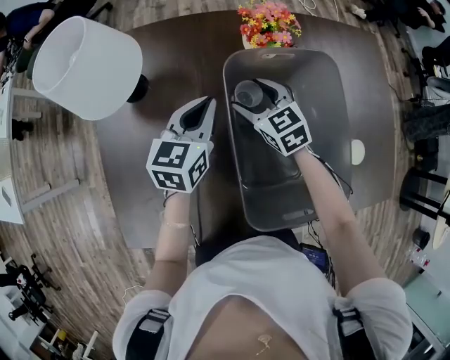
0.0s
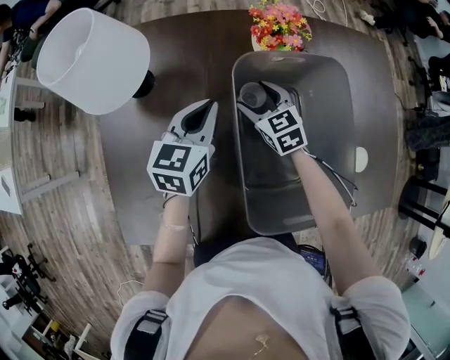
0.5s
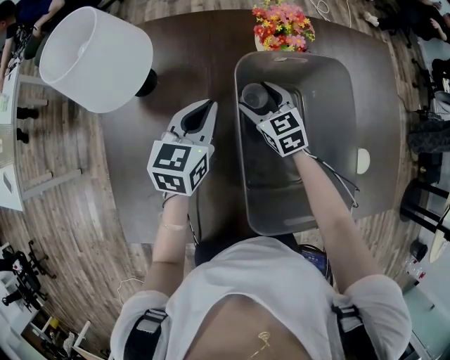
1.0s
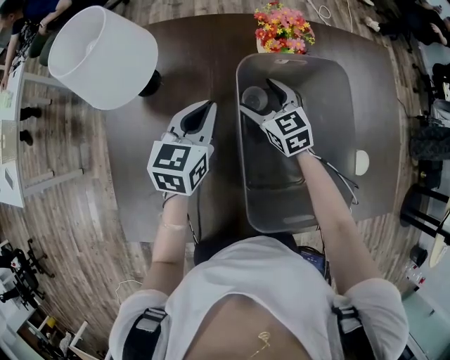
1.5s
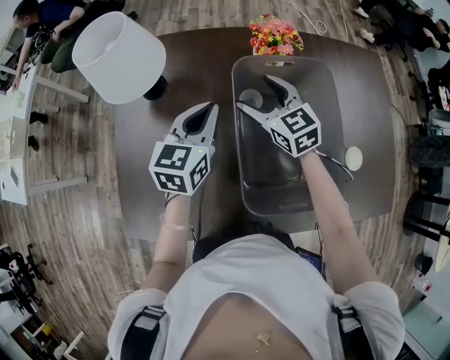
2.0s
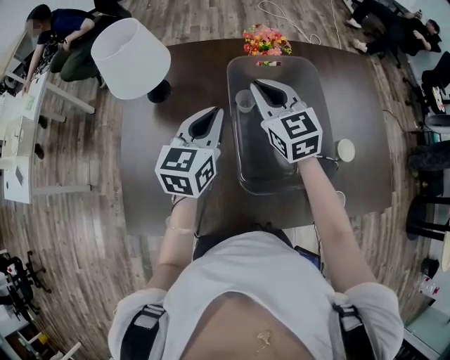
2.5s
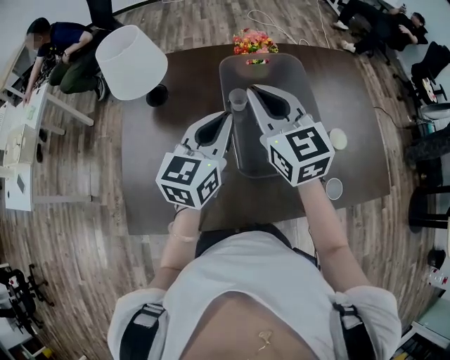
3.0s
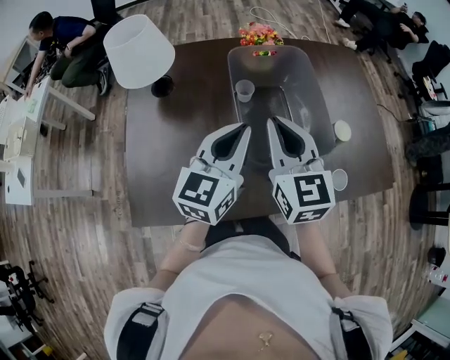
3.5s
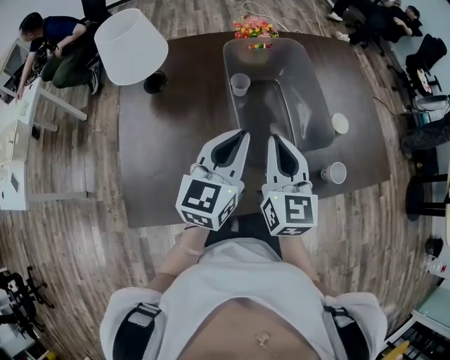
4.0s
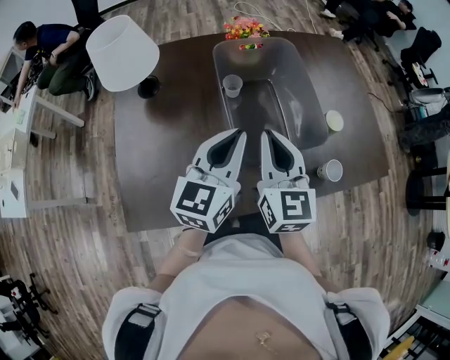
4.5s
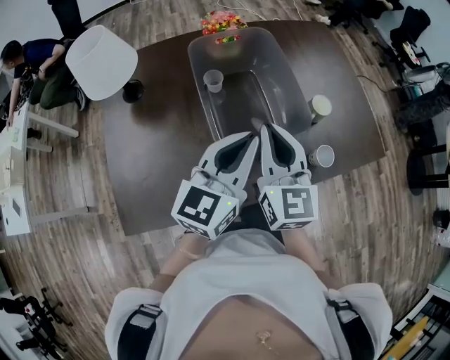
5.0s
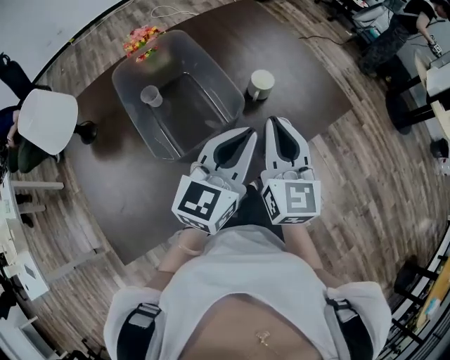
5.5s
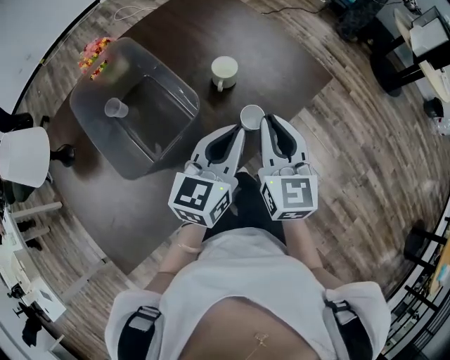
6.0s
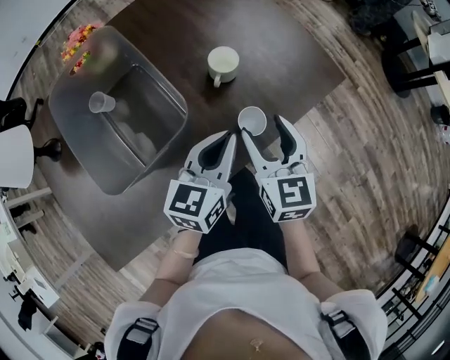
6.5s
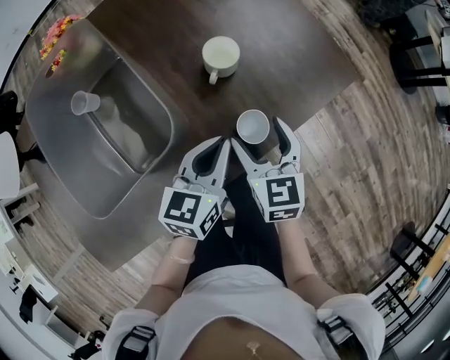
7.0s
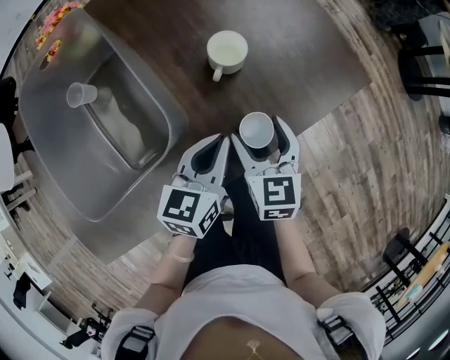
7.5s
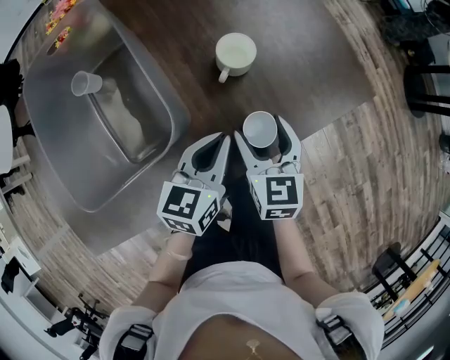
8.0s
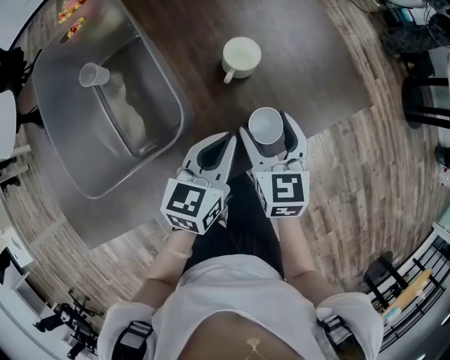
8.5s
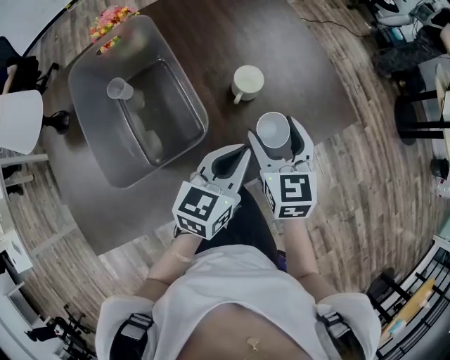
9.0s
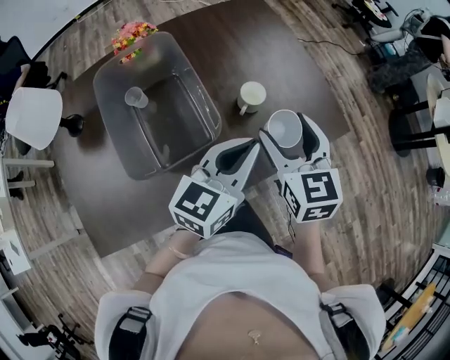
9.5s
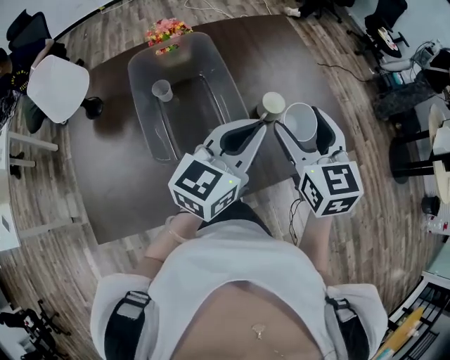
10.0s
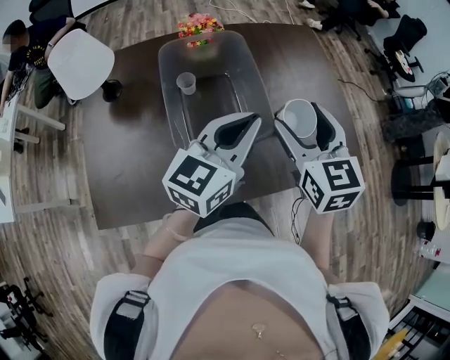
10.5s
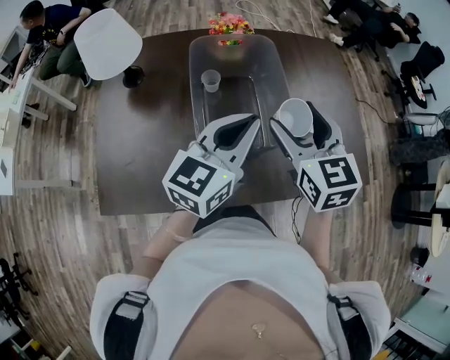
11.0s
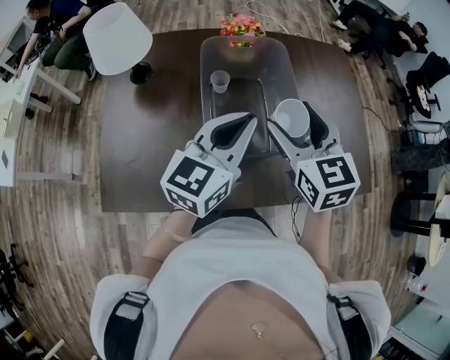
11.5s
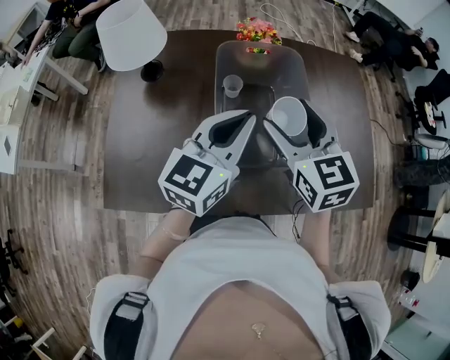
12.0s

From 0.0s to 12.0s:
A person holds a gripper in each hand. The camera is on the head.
From 0.0s to 2.0s: The right gripper moves upward, about 10 cm, while the left gripper moves about 5 cm.
From 2.0s to 4.0s: Both grippers move backward, roughly 20 cm. The right gripper turns by some 40 degrees, and closes its fingers.
From 4.0s to 6.0s: The right gripper moves roughly 30 cm, and changes its angle by about 30 degrees; the left gripper shifts by roughly 30 cm, and turns by some 30 degrees.
From 6.0s to 8.0s: The two grippers go roughly 15 cm downward. The right gripper changes its angle by approximately 20 degrees, and opens. The left gripper swivels roughly 20 degrees.
From 8.0s to 10.0s: The grippers both shift upward by approximately 25 cm. The right gripper rotates roughly 20 degrees, while the left gripper changes its angle by about 30 degrees.
From 10.0s to 12.0s: The right gripper changes place by some 20 cm, and swivels about 30 degrees; the left gripper shifts by some 20 cm, and swivels approximately 20 degrees.

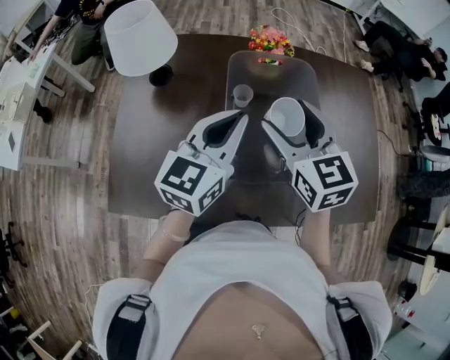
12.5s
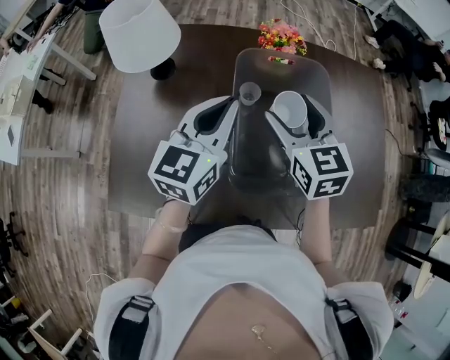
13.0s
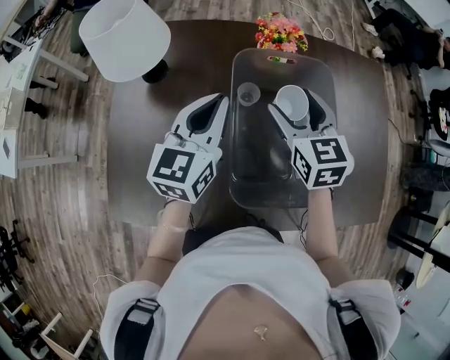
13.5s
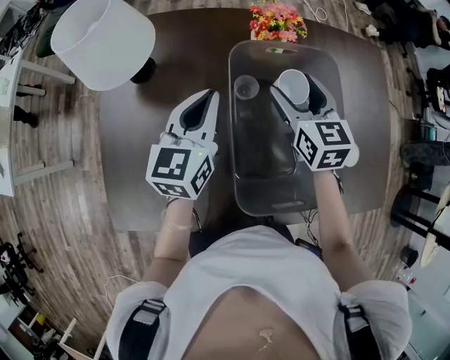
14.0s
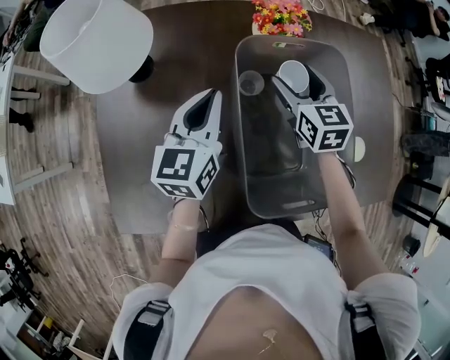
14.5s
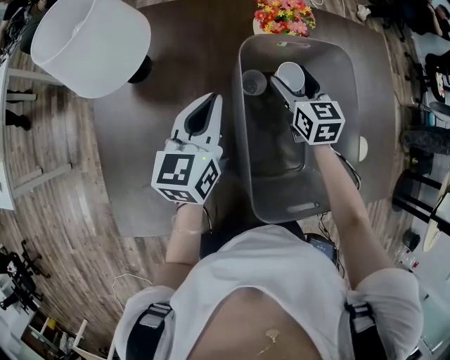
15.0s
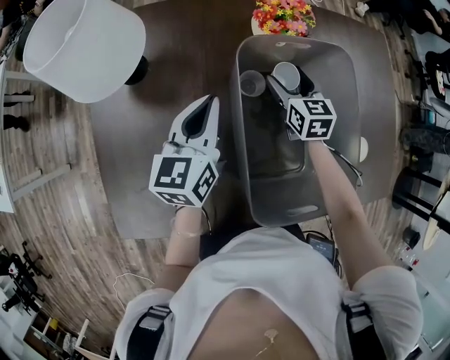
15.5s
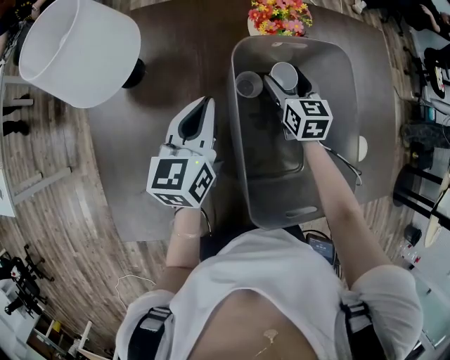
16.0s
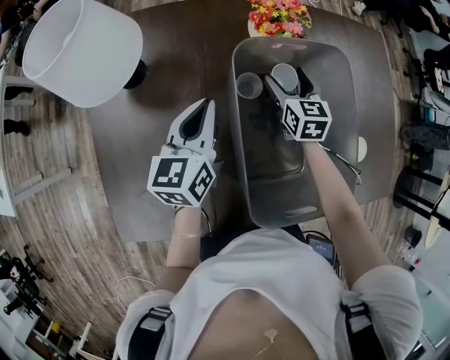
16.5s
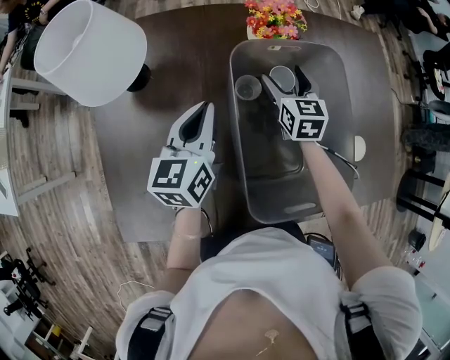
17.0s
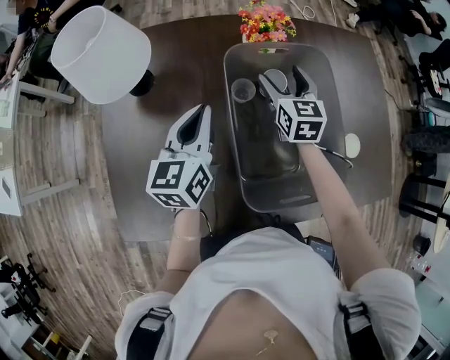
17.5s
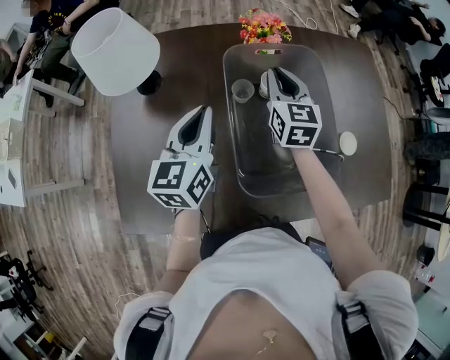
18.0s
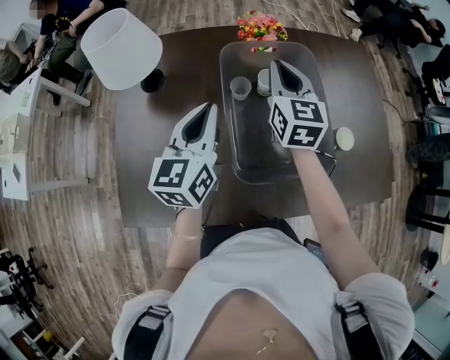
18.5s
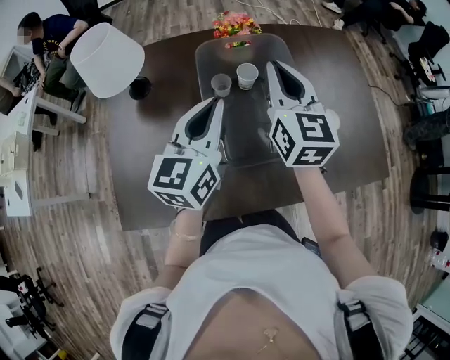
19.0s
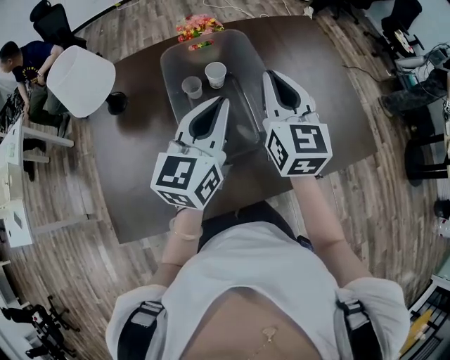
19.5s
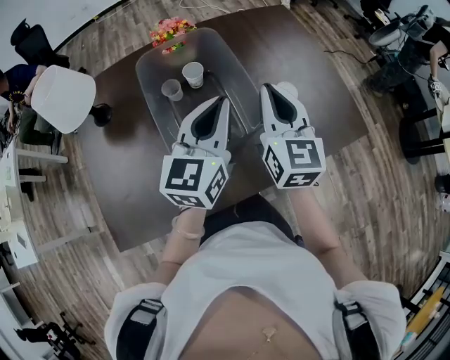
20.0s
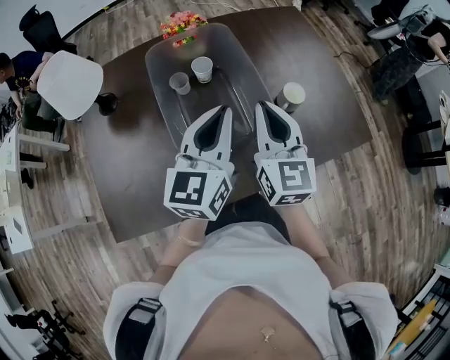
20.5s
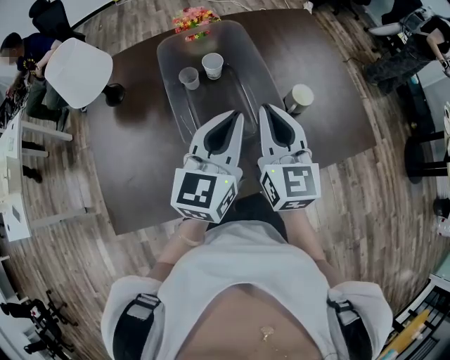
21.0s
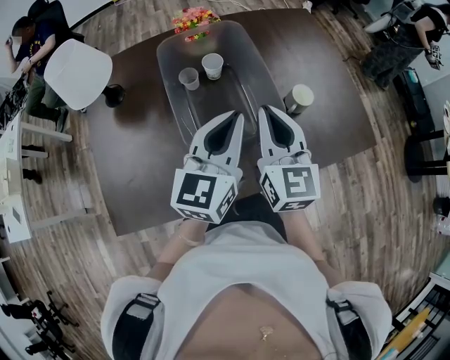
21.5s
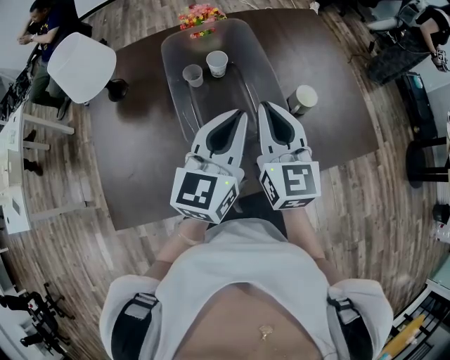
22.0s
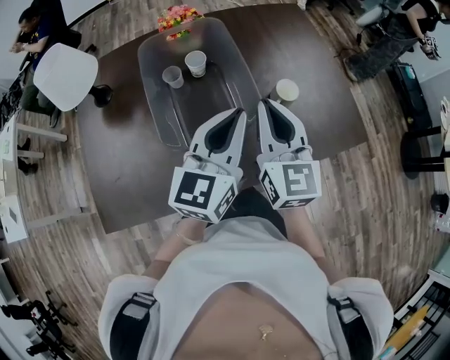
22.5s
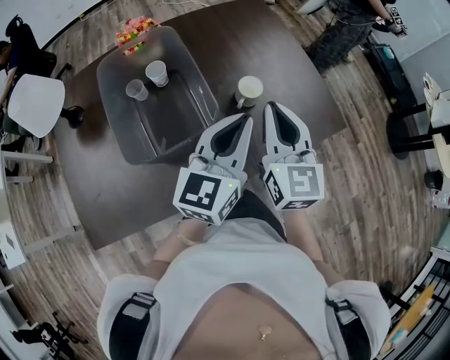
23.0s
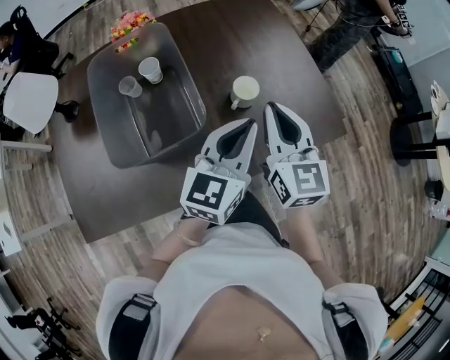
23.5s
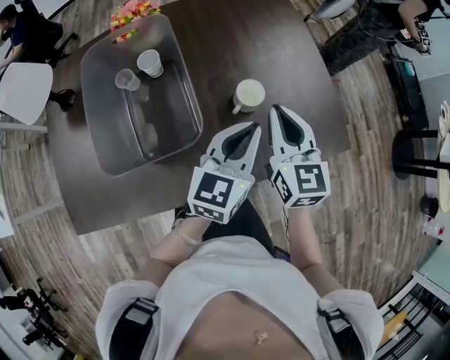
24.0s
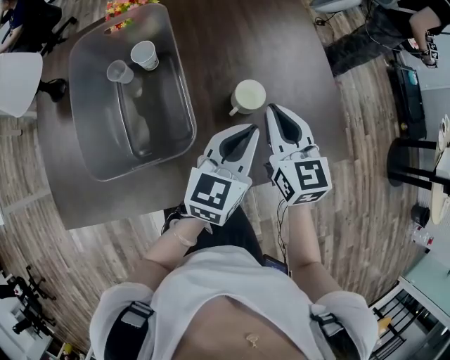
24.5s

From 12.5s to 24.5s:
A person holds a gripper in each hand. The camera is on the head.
From 12.5s to 14.5s: The right gripper shifts roughly 20 cm forward and downward. The left gripper shifts some 20 cm downward, forward and to the left.
From 14.5s to 16.5s: The right gripper is displaced downward by about 10 cm.
From 16.5s to 18.5s: The right gripper moves upward, roughly 20 cm, and closes its fingers. Meanwhile the left gripper shifts about 15 cm upward and backward.
From 18.5s to 20.5s: The left gripper heads to the right, covering about 20 cm, while the right gripper is displaced backward and to the right by some 25 cm.
From 20.5s to 22.5s: The left gripper changes place by about 5 cm.
From 22.5s to 24.5s: Both grippers travel together to the right, downward and forward, roughly 20 cm.

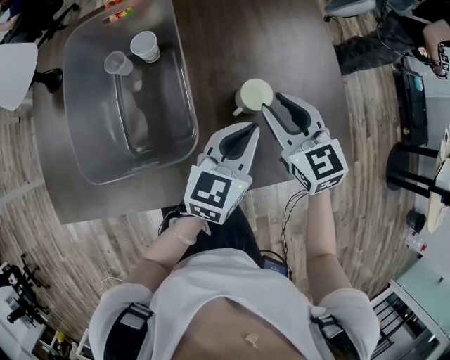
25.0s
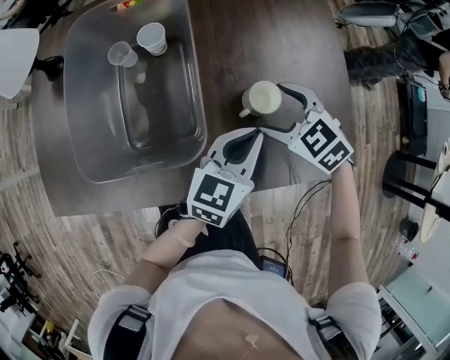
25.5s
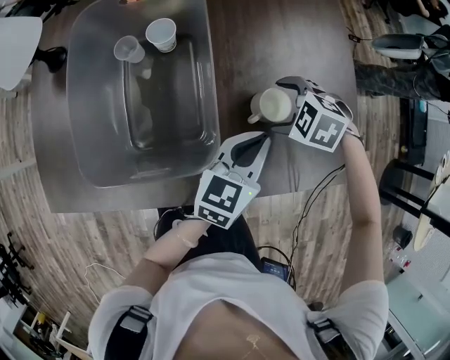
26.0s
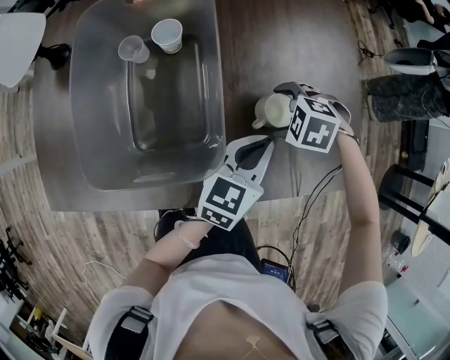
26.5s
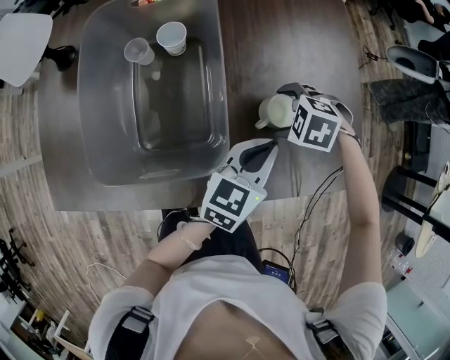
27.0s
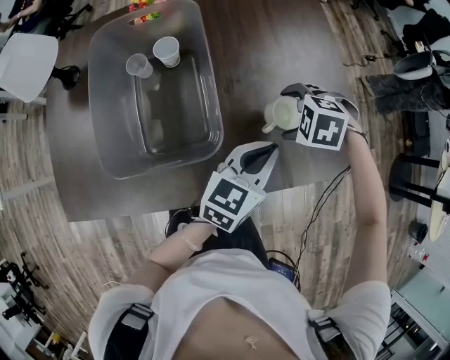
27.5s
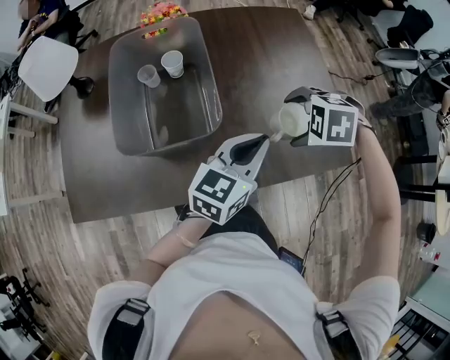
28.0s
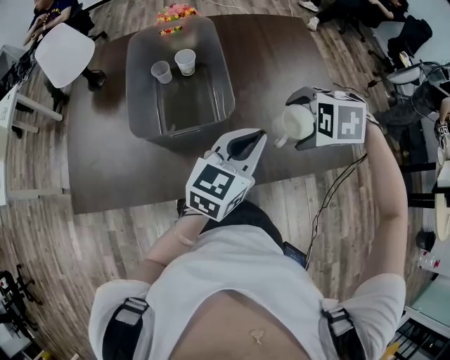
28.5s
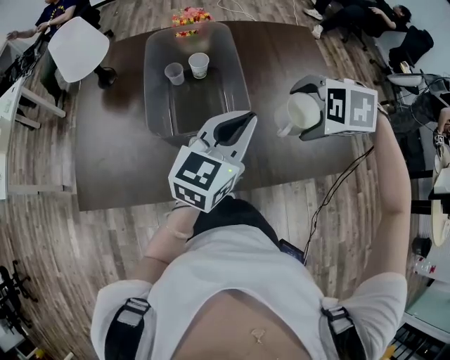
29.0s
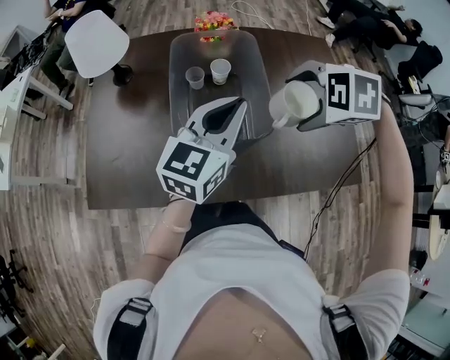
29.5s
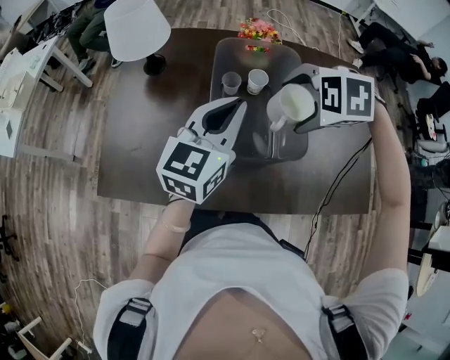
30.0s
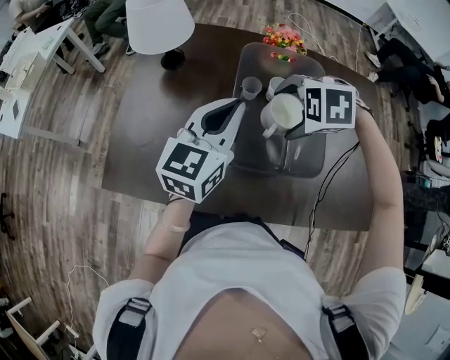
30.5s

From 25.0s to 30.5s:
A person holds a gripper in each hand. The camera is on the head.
From 25.0s to 27.0s: The right gripper travels downward by about 15 cm, angles its fingers downward, by some 50 degrees, and opens up.
From 27.0s to 28.5s: Both grippers travel together upward, some 15 cm.
From 28.5s to 30.5s: The left gripper shifts by roughly 35 cm, and turns by roughly 30 degrees. Meanwhile the right gripper changes place by about 30 cm, and changes its angle by roughly 20 degrees.
